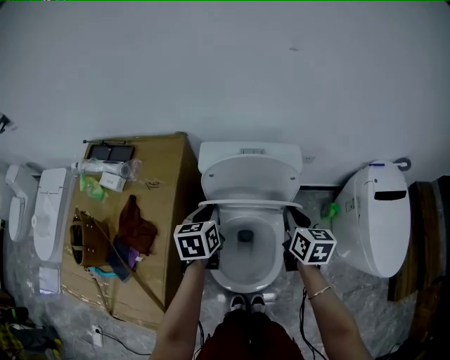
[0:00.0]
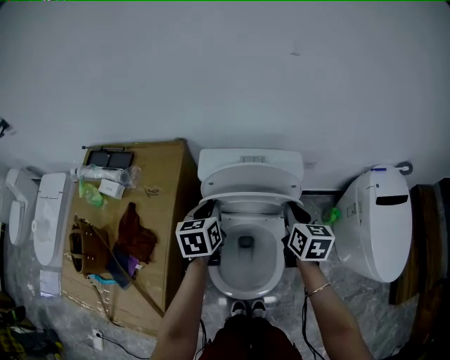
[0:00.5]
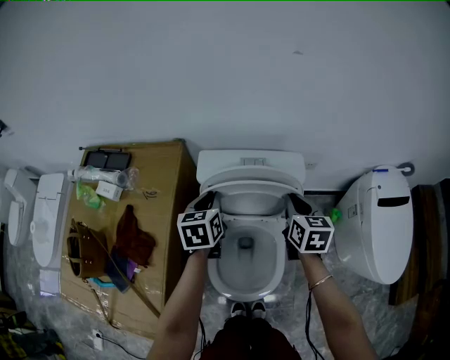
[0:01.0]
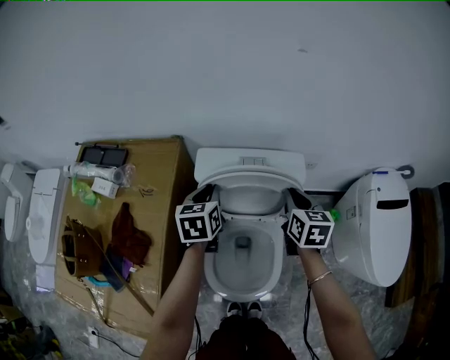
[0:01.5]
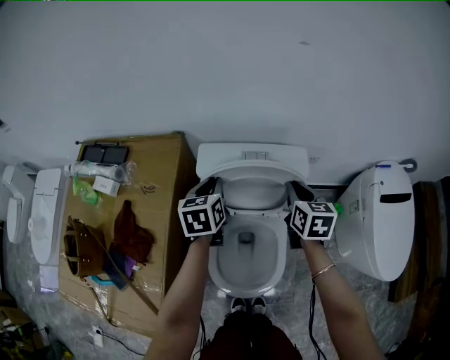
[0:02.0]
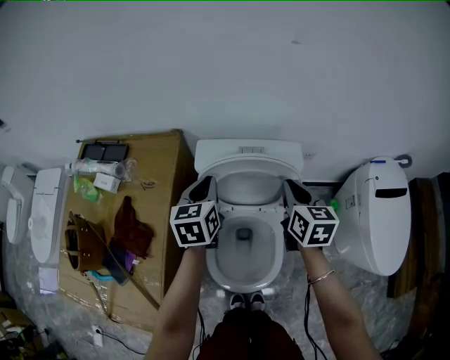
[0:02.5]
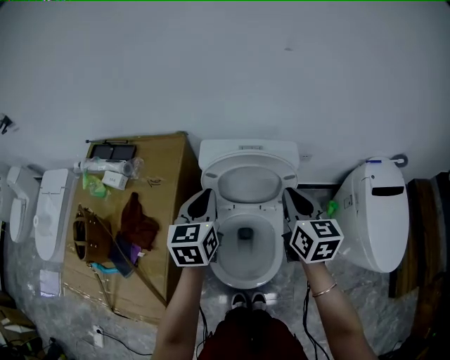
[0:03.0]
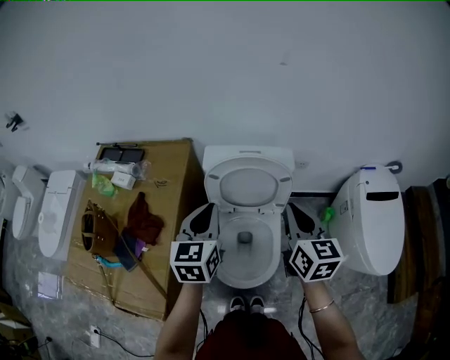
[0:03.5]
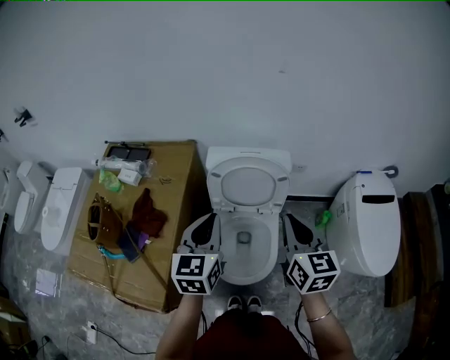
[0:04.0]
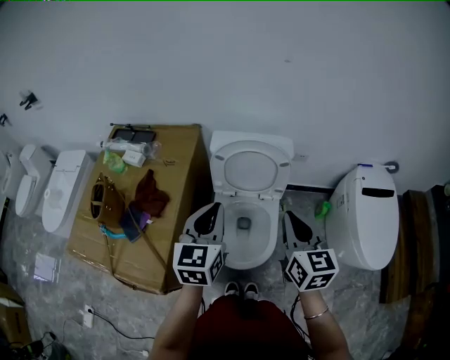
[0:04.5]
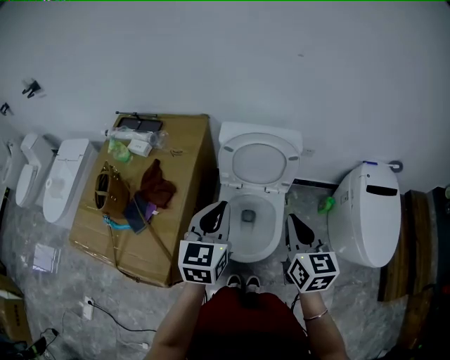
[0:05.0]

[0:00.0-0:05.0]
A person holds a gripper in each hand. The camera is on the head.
0:00.0 to 0:02.5: The left gripper moves forward and upward, roughly 10 cm. Meanwhile the right gripper moves forward, about 5 cm.
0:02.5 to 0:05.0: The left gripper shifts some 30 cm backward and upward. Meanwhile the right gripper goes some 25 cm backward.

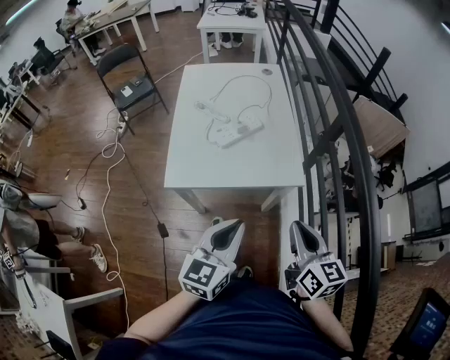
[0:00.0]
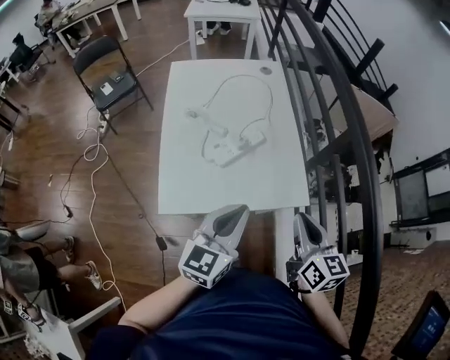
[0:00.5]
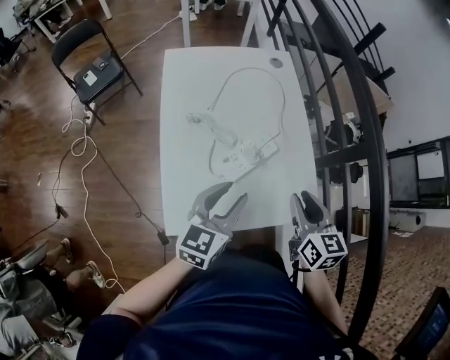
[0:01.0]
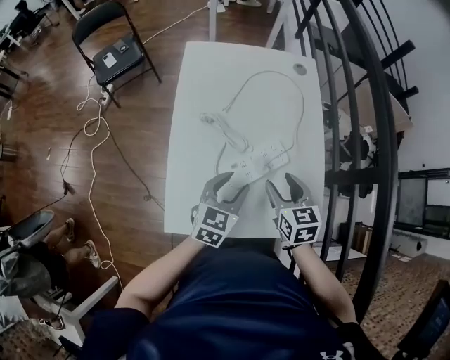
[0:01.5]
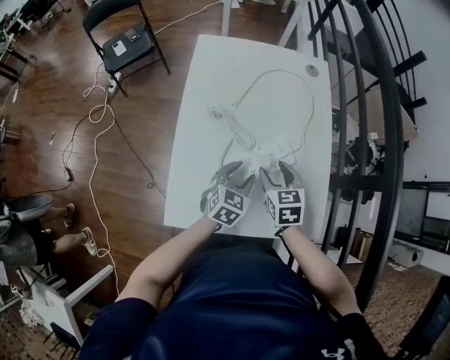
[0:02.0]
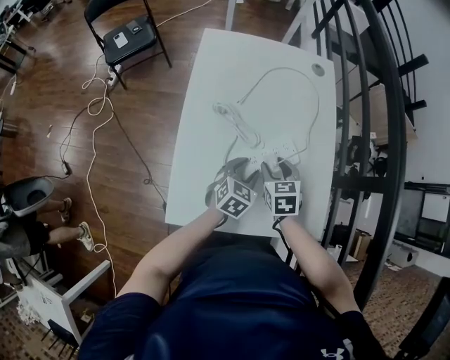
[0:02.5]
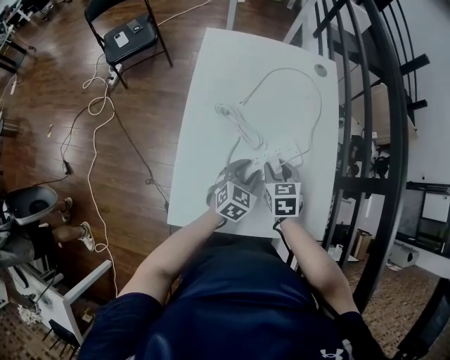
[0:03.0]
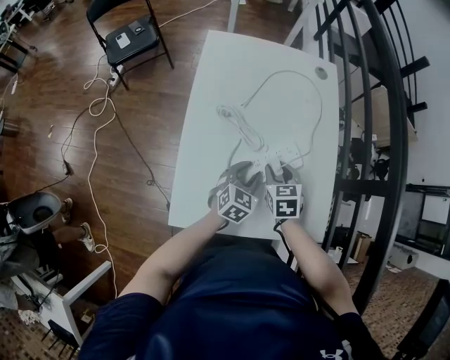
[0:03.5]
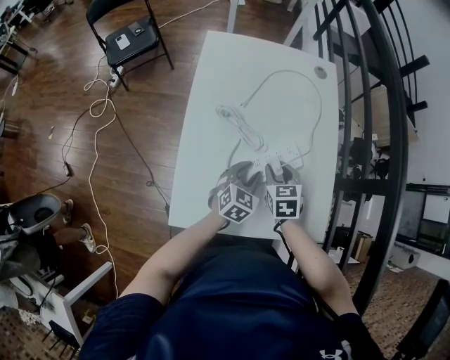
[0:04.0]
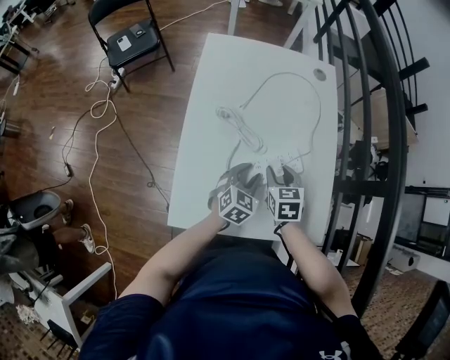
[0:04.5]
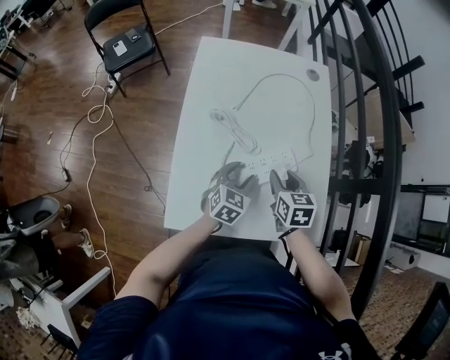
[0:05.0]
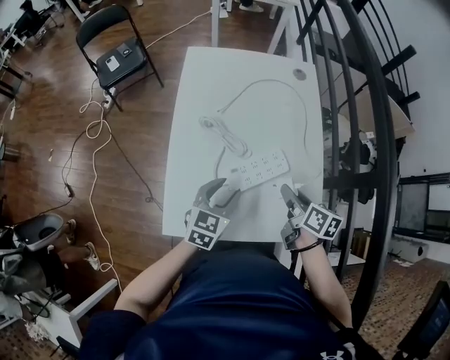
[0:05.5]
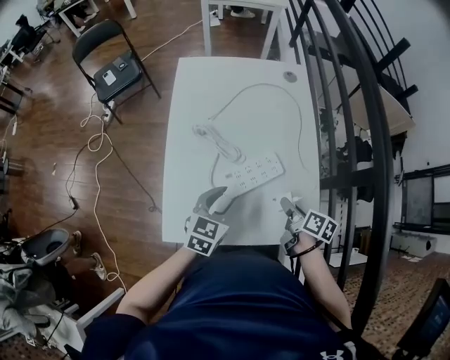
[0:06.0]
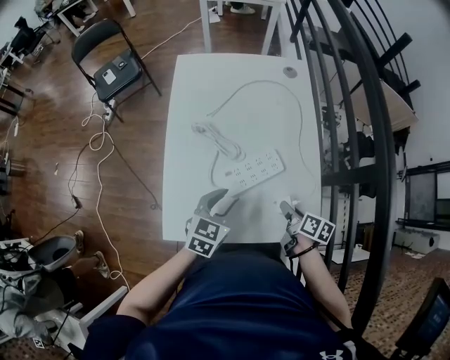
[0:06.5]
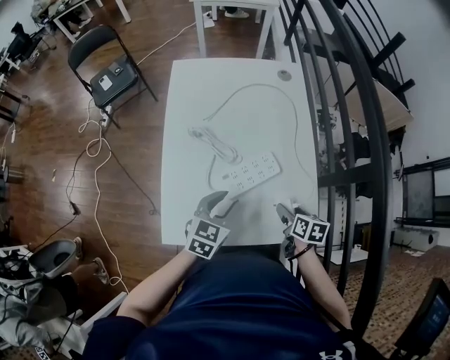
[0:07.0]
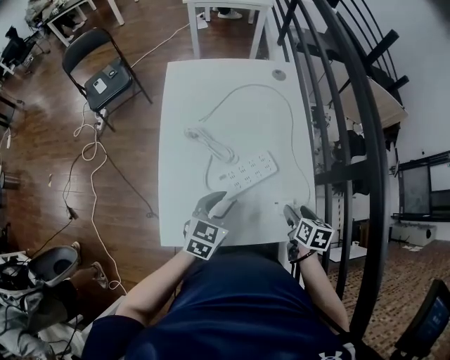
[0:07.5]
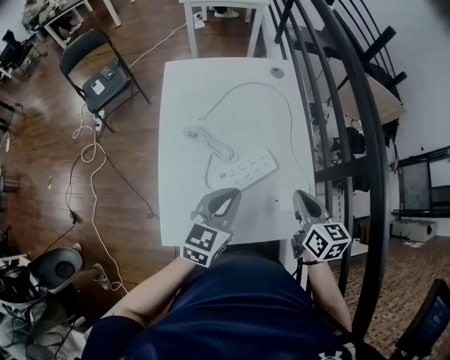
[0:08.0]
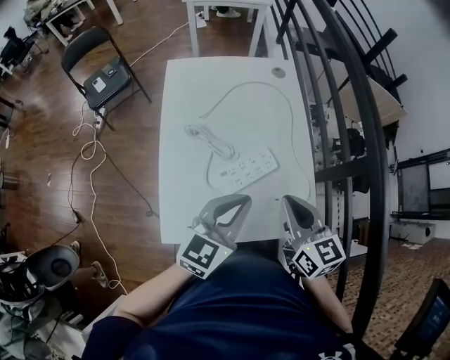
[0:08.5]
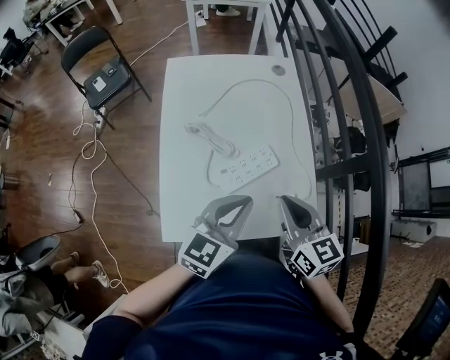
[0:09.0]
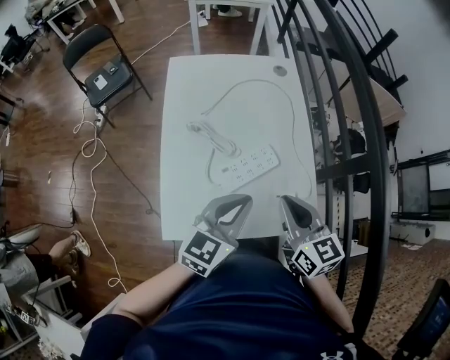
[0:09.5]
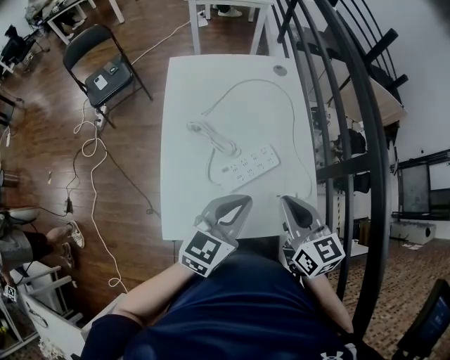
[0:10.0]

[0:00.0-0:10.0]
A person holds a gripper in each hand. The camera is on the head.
0:00.0 to 0:02.0: The right gripper goes some 50 cm forward, to the left and downward, turns by roughly 40 degrees, and opens; the left gripper moves forward and downward, approximately 40 cm, swivels roughly 30 degrees, and opens.
0:02.0 to 0:04.0: The right gripper closes.
0:04.0 to 0:06.0: The left gripper travels upward and backward by some 10 cm. The right gripper heads to the right and backward, covering some 15 cm, and rolls clockwise, seen from behind, by approximately 60 degrees.
0:06.0 to 0:08.0: The left gripper heads upward, covering some 10 cm, and closes its fingers. Meanwhile the right gripper heads upward, covering approximately 15 cm, turns by roughly 40 degrees, and closes up.
0:08.0 to 0:10.0: The left gripper changes place by roughly 5 cm, while the right gripper goes about 10 cm to the left and upward.

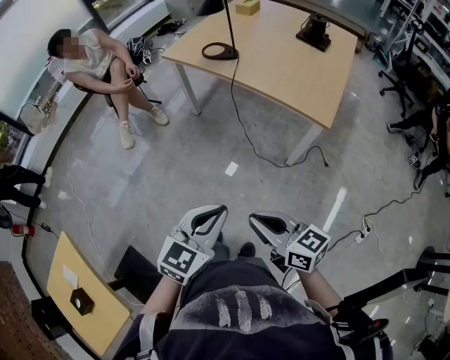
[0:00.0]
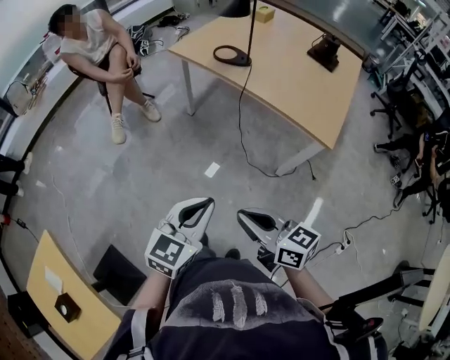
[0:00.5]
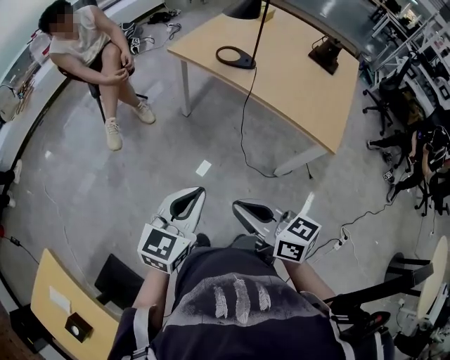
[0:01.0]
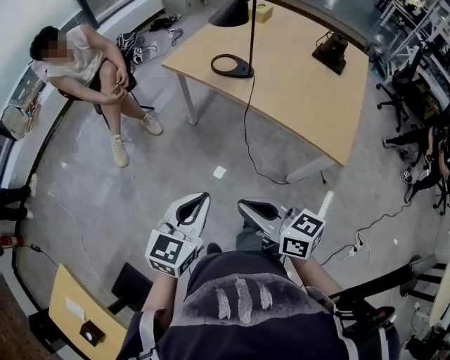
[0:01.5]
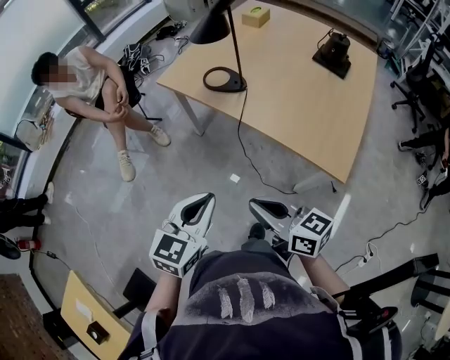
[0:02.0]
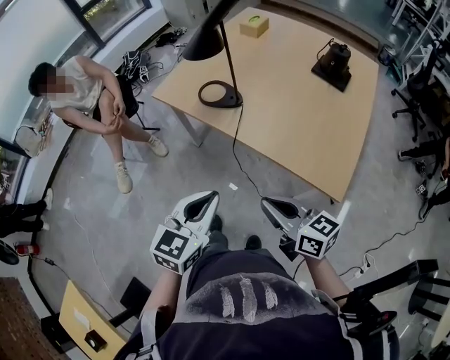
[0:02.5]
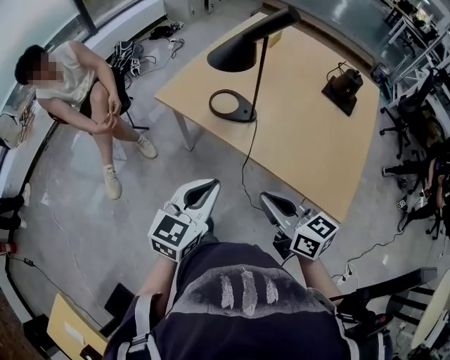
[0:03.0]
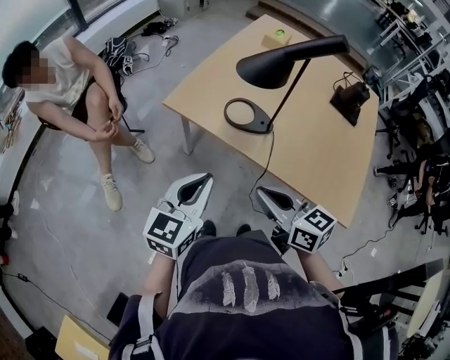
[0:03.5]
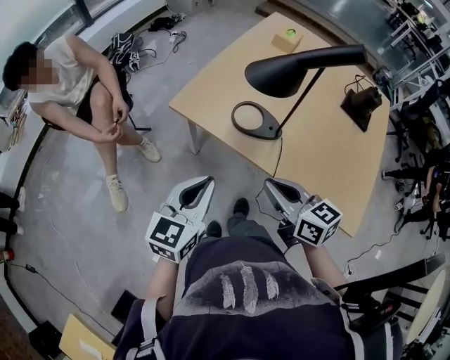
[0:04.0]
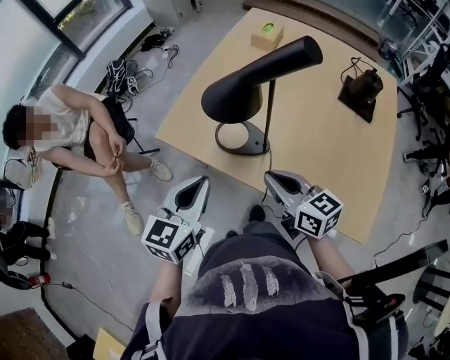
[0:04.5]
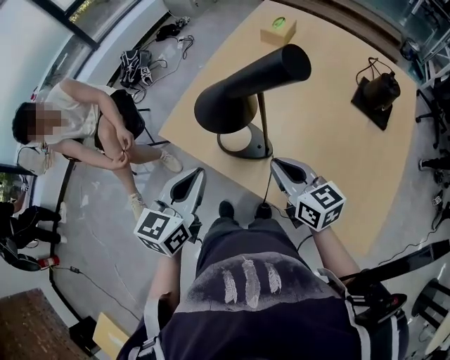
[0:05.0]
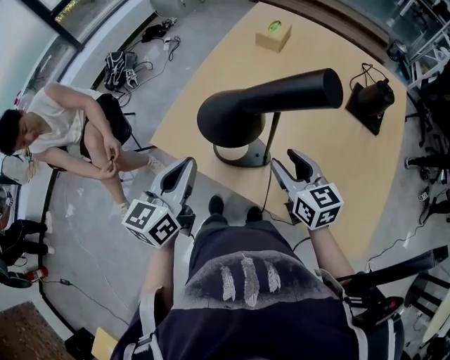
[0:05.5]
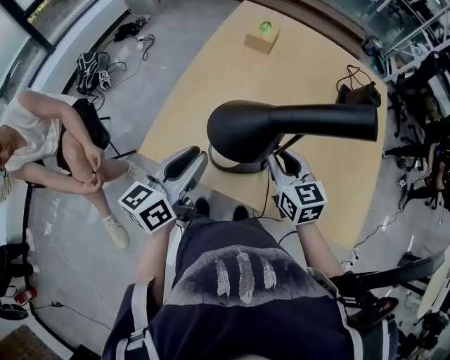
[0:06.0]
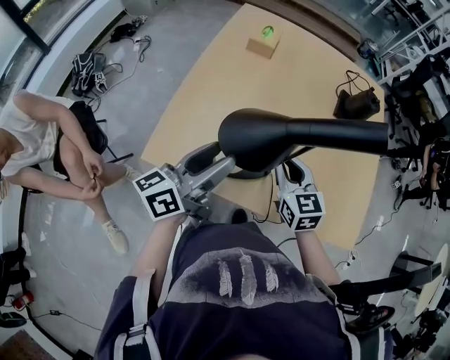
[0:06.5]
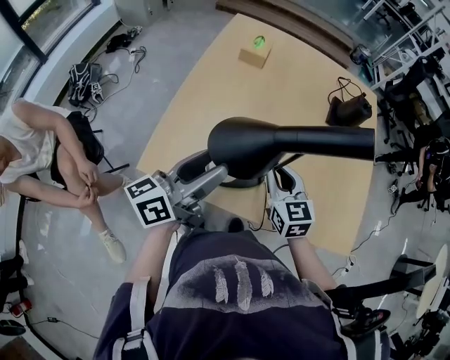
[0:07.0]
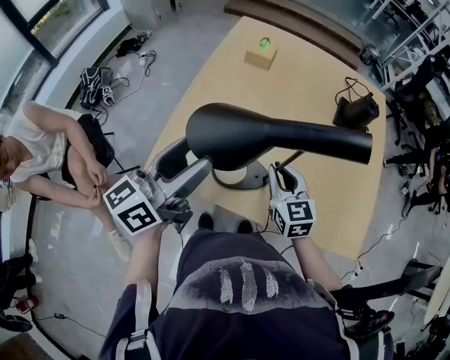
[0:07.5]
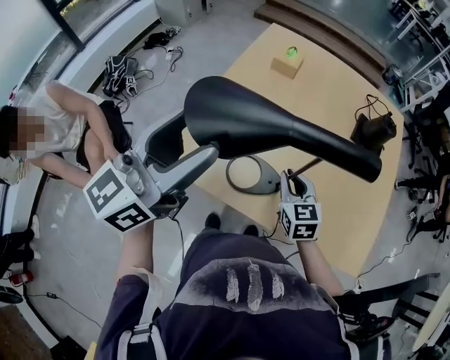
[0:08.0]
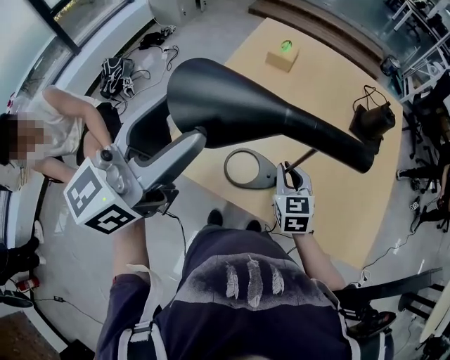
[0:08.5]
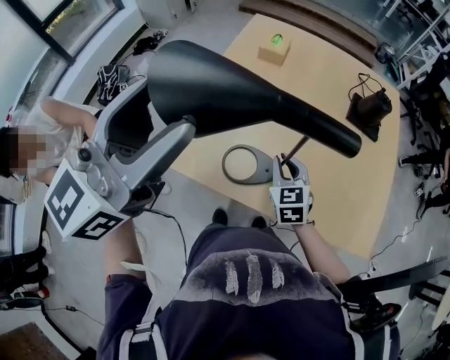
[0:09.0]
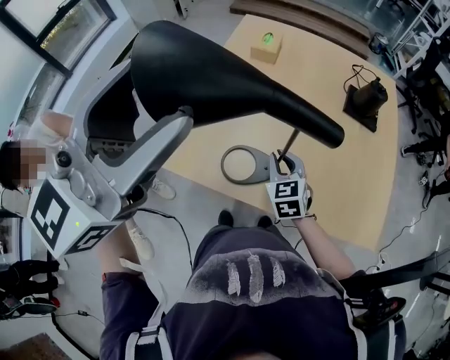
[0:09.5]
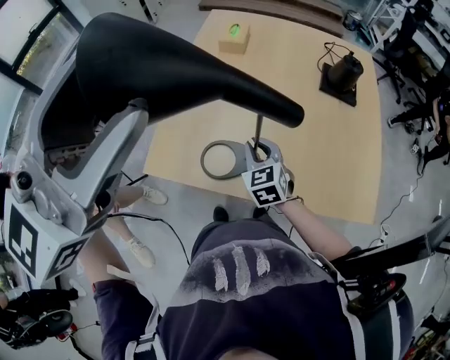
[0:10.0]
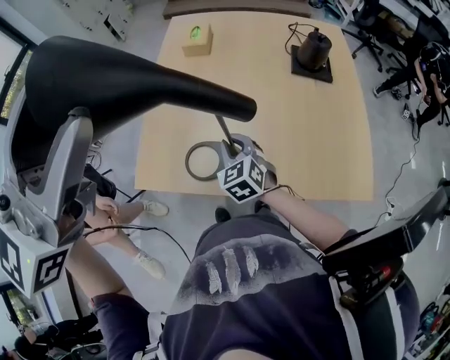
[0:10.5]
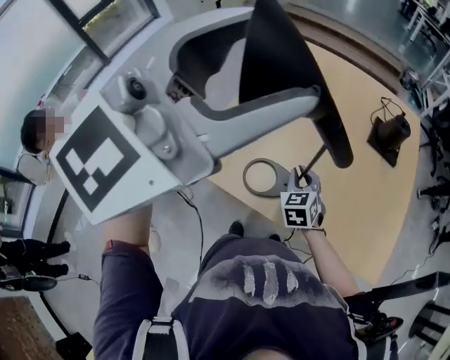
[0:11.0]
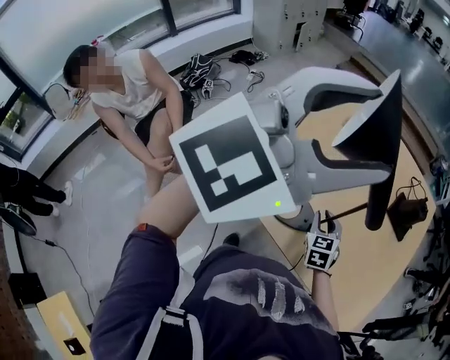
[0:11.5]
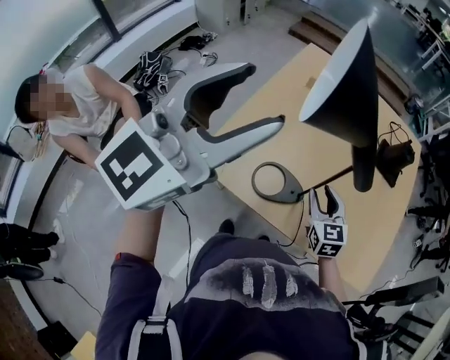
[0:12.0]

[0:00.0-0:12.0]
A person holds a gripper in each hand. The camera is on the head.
0:00.0 to 0:02.0: Both grippers move forward, approximately 30 cm.
0:02.0 to 0:04.0: The right gripper goes approximately 30 cm forward; the left gripper is displaced forward and to the left by approximately 35 cm.
0:04.0 to 0:06.0: The right gripper shifts about 25 cm forward and to the right, swivels approximately 30 degrees, and opens. The left gripper is displaced forward by about 25 cm, and swivels some 30 degrees.
0:06.0 to 0:08.0: The left gripper travels upward by approximately 20 cm, rotates approximately 20 degrees, and opens.
0:08.0 to 0:10.0: The left gripper goes about 15 cm upward, and rotates roughly 30 degrees.
0:10.0 to 0:12.0: The left gripper goes about 10 cm to the left; the right gripper opens.
